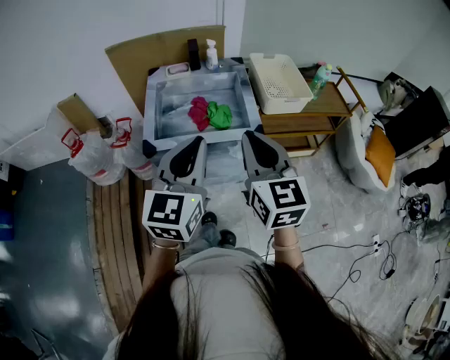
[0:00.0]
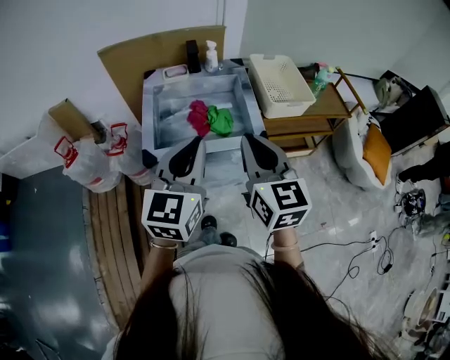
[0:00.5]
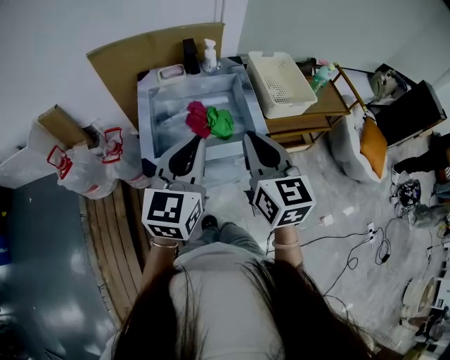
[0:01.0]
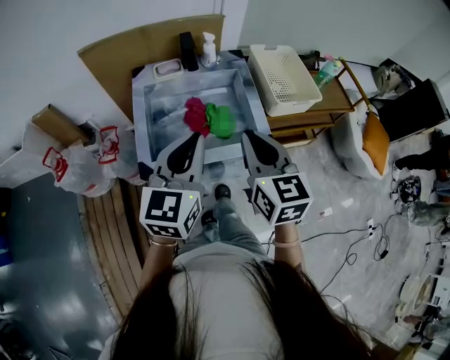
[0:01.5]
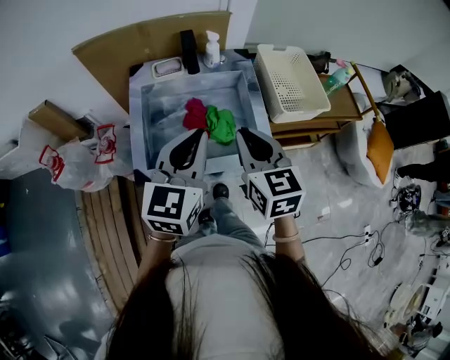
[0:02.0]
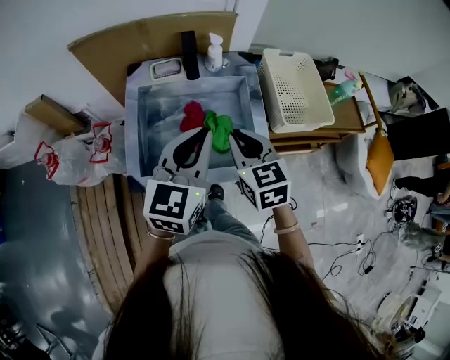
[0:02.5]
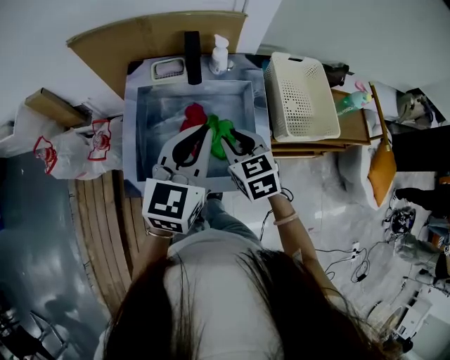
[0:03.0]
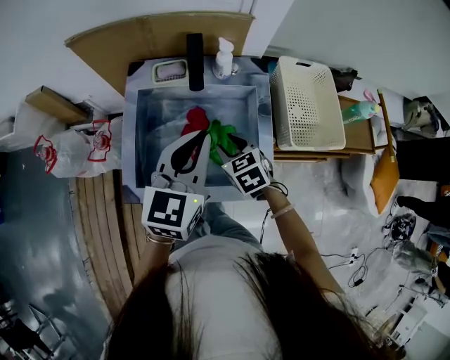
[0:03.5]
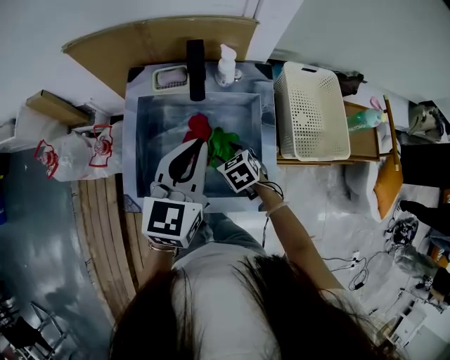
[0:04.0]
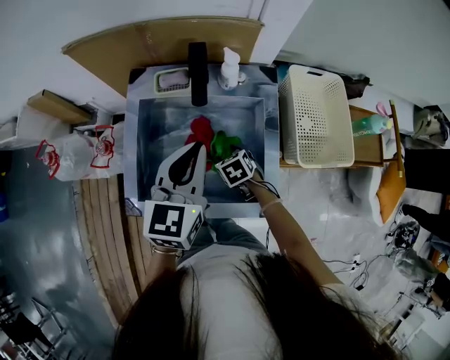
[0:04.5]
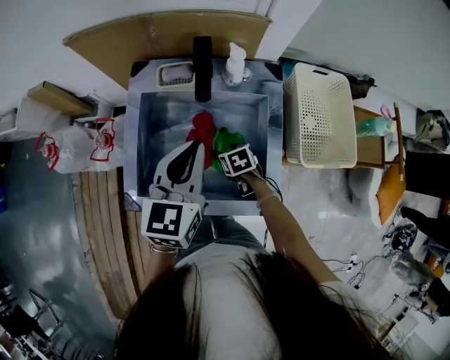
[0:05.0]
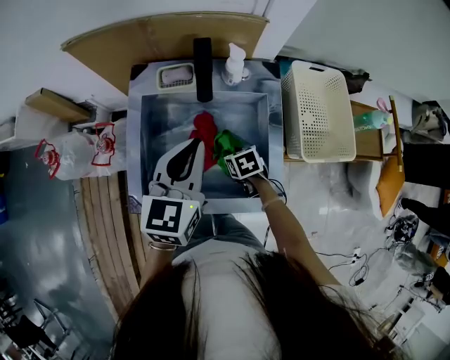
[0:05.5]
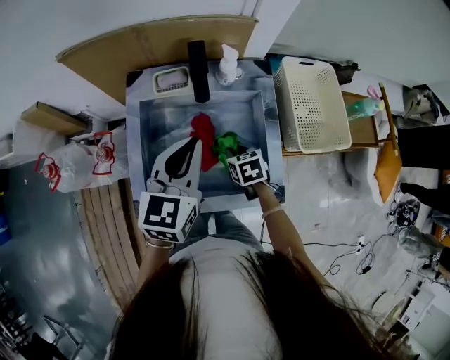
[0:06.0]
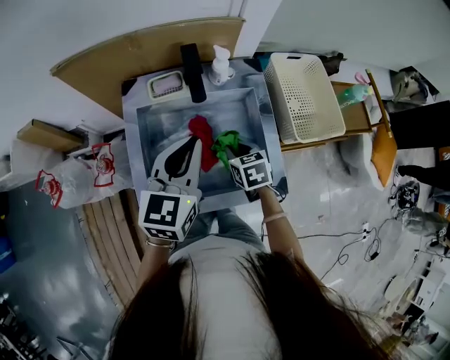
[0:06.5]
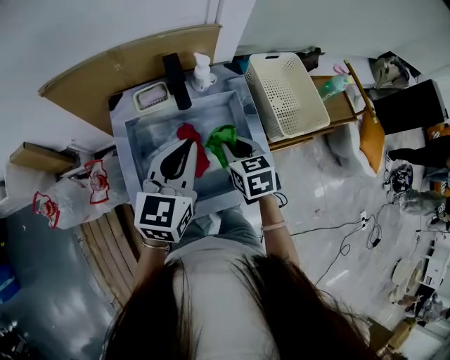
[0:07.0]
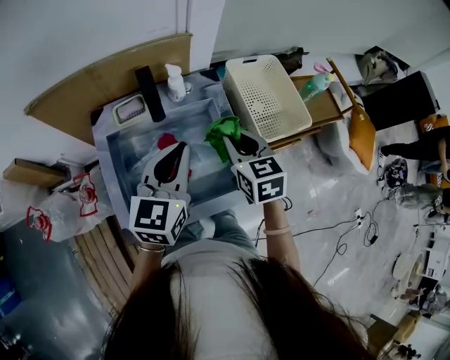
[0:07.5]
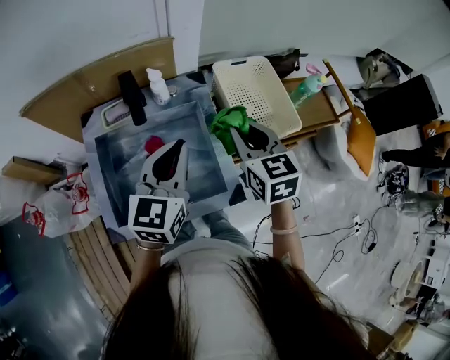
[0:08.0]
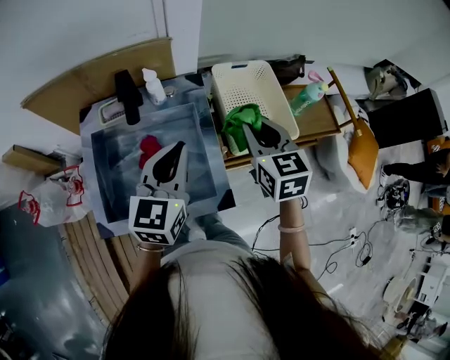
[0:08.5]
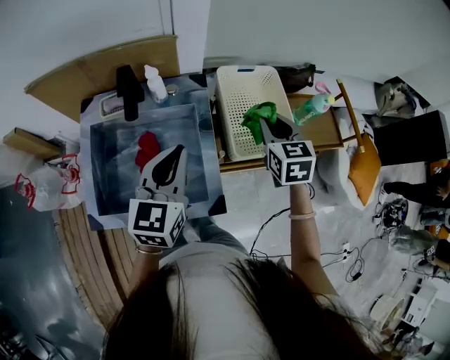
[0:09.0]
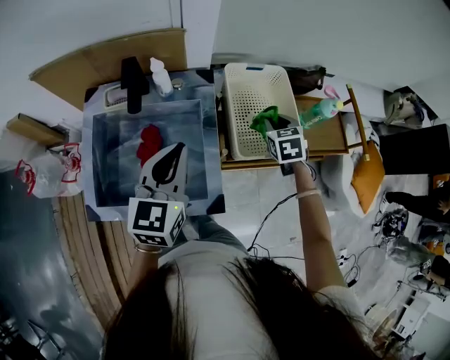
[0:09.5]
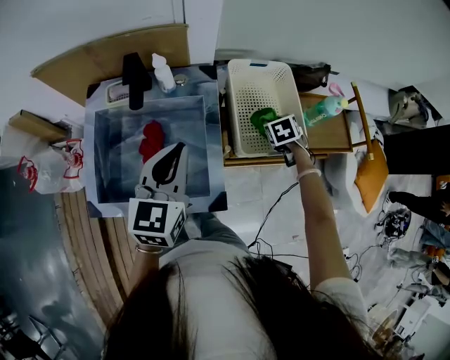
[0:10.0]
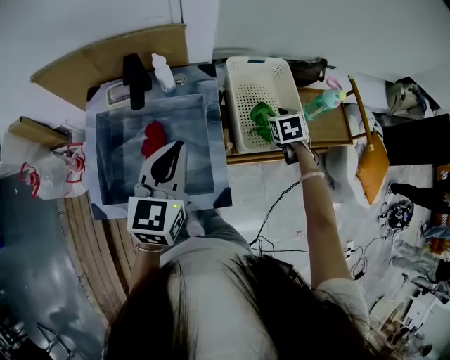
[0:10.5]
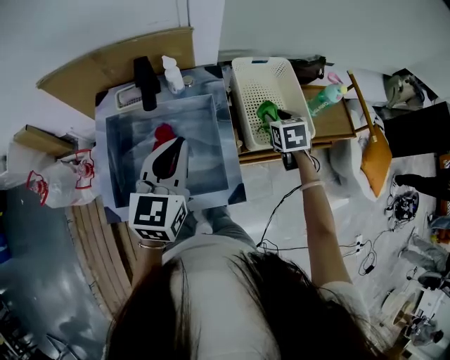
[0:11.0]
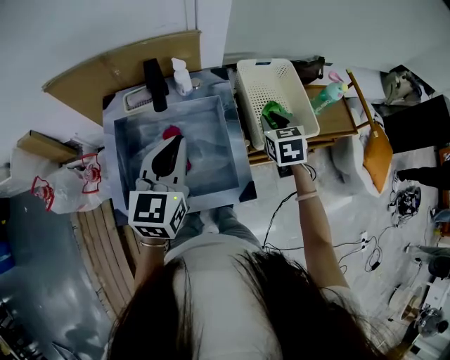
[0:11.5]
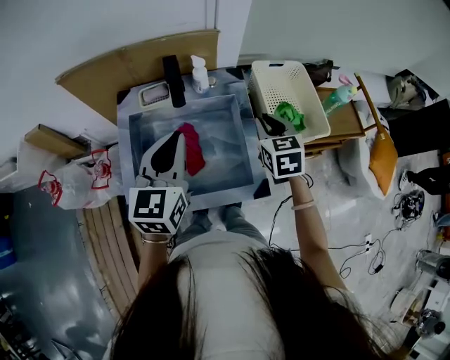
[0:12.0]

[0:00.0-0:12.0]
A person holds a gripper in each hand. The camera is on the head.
0:00.0 to 0:02.0: The left gripper shifts approximately 20 cm forward. The right gripper shifts roughly 25 cm forward and downward.
0:02.0 to 0:04.0: The right gripper moves downward and forward, approximately 30 cm, tips its fingers downward by approximately 40 degrees, and opens its fingers, while the left gripper is displaced forward by about 15 cm.
0:04.0 to 0:06.0: The right gripper travels downward and back again, some 10 cm each way, rotates approximately 20 degrees, and closes.
0:06.0 to 0:08.0: The right gripper moves upward and to the right, roughly 30 cm, and tips its fingers upward by about 30 degrees, while the left gripper moves to the right, about 10 cm.
0:08.0 to 0:10.0: The right gripper shifts roughly 30 cm downward, to the right and forward, and angles its fingers downward, by some 40 degrees.
0:10.0 to 0:12.0: The left gripper heads to the left, covering about 15 cm. The right gripper goes some 30 cm to the left, upward and backward, and turns by roughly 30 degrees.

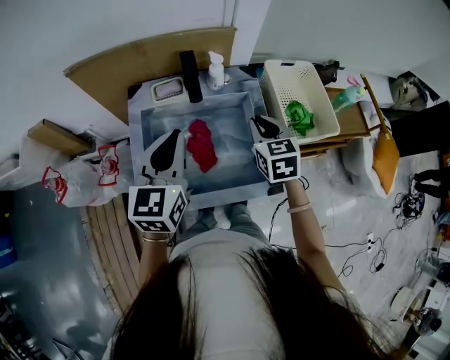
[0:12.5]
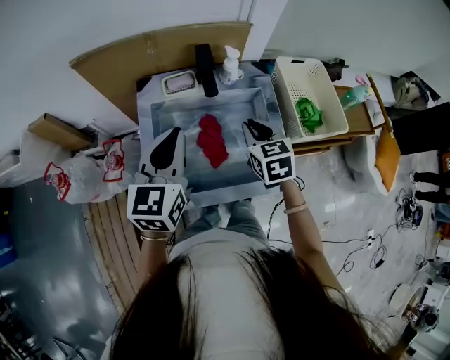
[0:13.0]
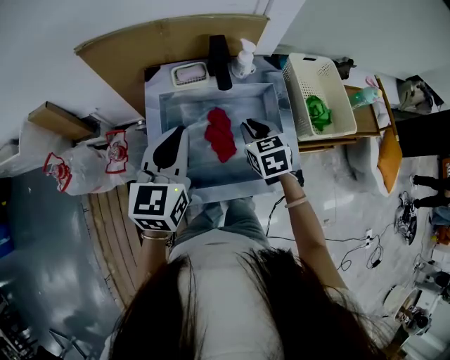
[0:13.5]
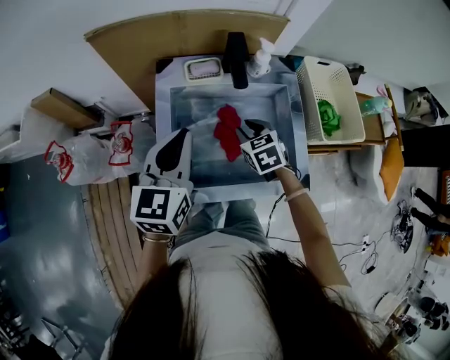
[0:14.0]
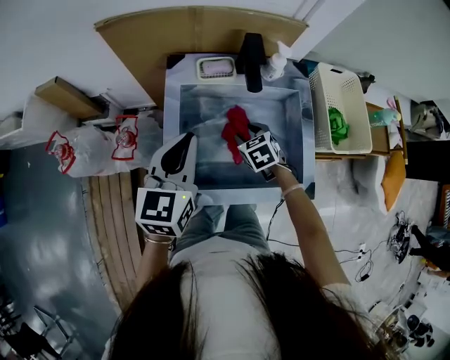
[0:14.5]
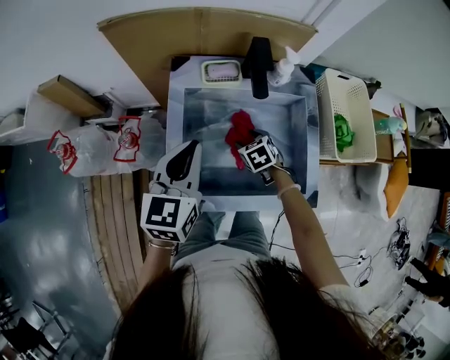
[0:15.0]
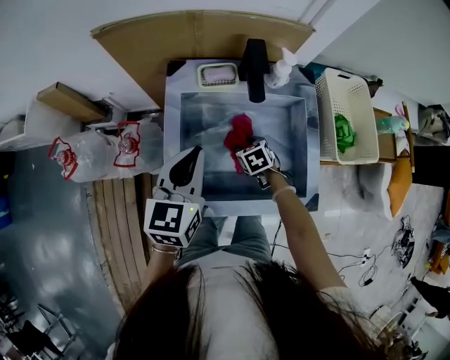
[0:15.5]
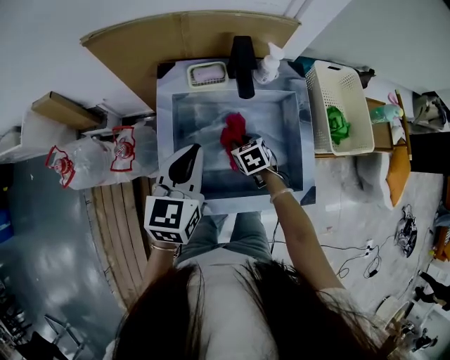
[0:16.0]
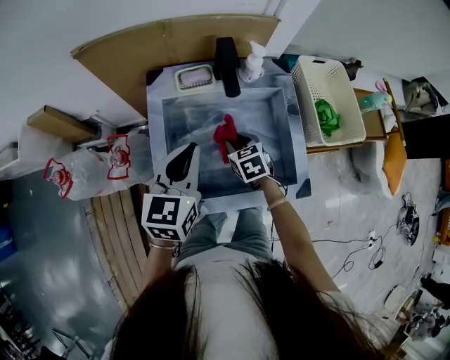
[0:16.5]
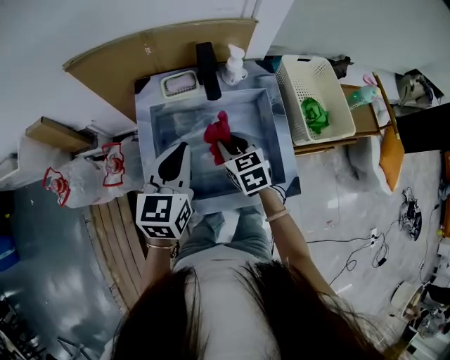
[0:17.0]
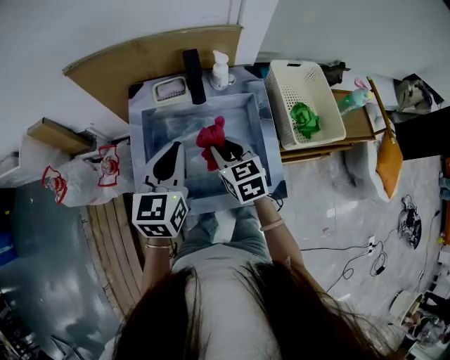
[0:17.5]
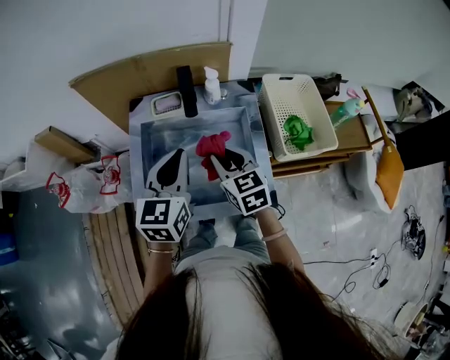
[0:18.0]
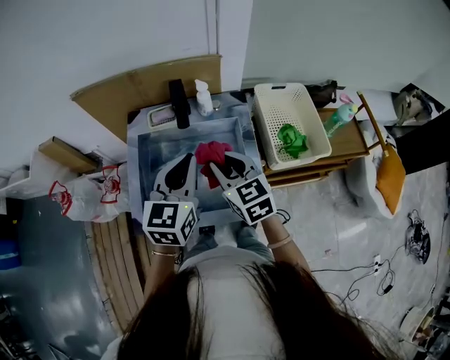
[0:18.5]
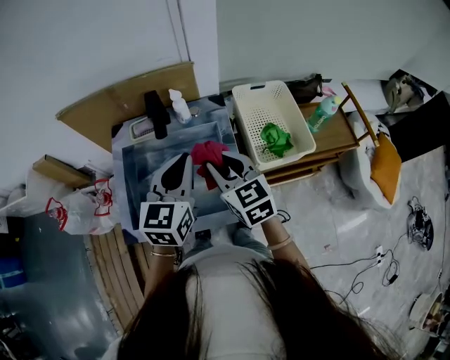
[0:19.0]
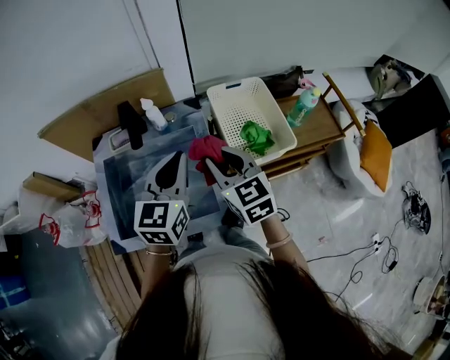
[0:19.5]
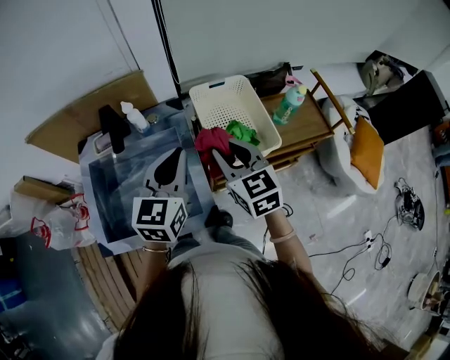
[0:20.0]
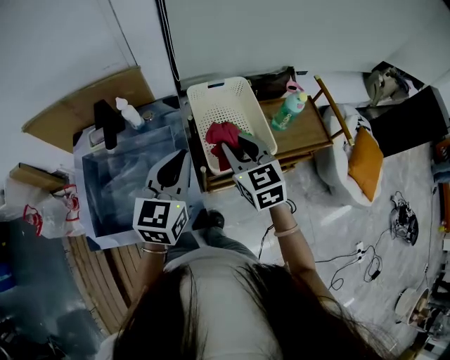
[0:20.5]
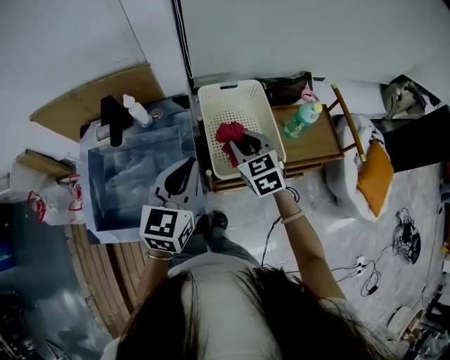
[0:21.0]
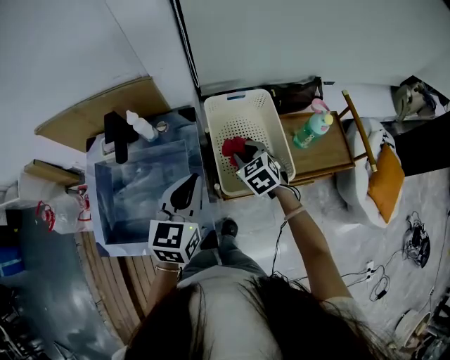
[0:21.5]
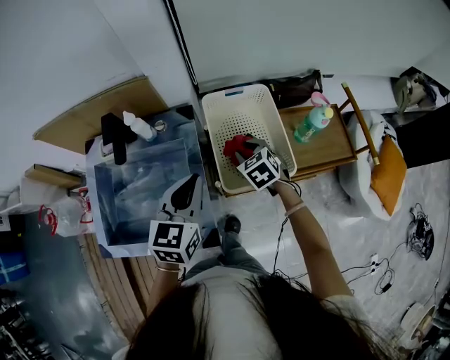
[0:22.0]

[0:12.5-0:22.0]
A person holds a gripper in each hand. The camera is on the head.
0:12.5 to 0:14.5: The right gripper is displaced downward and to the left by roughly 25 cm, swivels approximately 30 degrees, and opens. The left gripper is displaced to the left and downward by roughly 15 cm.
0:14.5 to 0:16.5: The right gripper reaches about 5 cm downward, then returns, and closes.
0:16.5 to 0:18.0: The left gripper heads to the right and upward, covering some 10 cm. The right gripper shifts about 15 cm upward, and swivels about 20 degrees.
0:18.0 to 0:20.0: Both grippers move to the right, about 25 cm.
0:20.0 to 0:22.0: The right gripper goes roughly 20 cm downward and forward, and angles its fingers downward, by approximately 30 degrees. Meanwhile the left gripper goes some 5 cm downward.

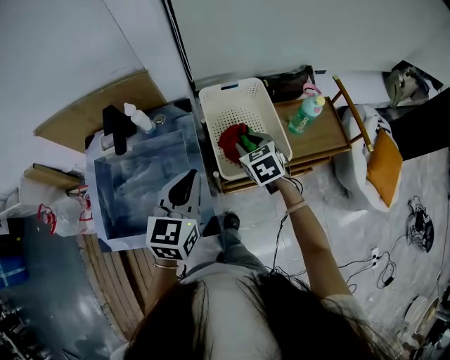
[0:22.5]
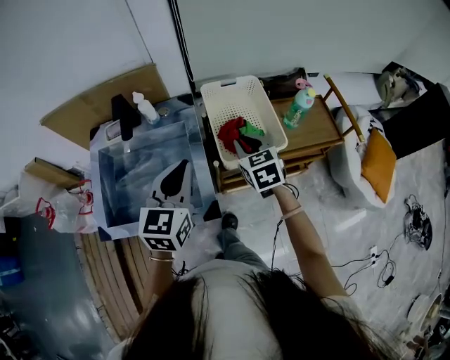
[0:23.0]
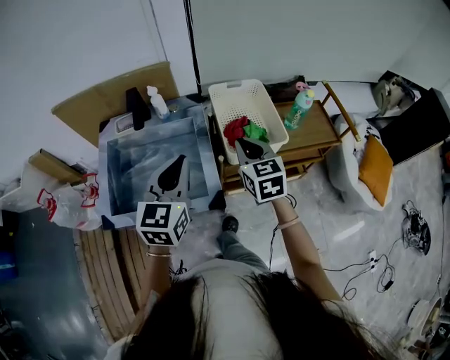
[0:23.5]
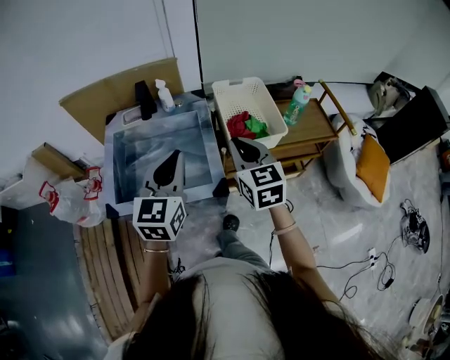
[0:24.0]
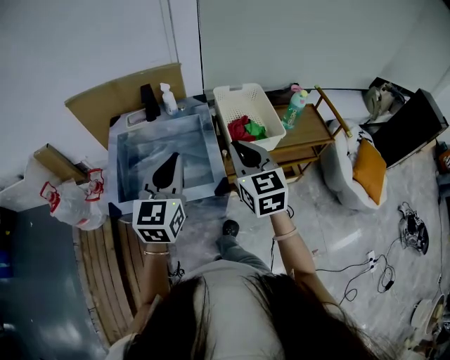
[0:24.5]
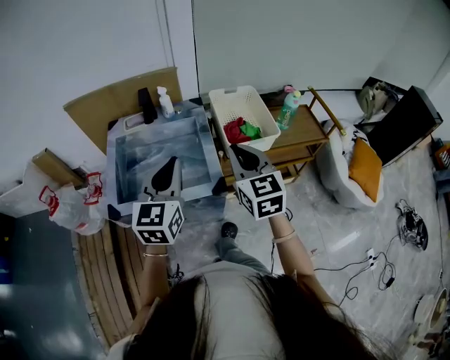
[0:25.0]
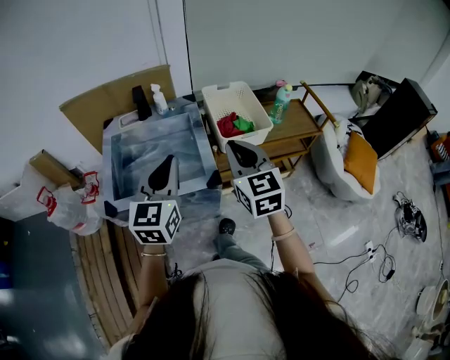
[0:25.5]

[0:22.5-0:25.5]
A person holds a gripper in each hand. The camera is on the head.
0:22.5 to 0:24.0: The left gripper moves backward, to the left and upward, approximately 20 cm. Meanwhile the right gripper heads backward, upward and to the left, covering approximately 25 cm, changes its angle by some 30 degrees, and closes up.
0:24.0 to 0:25.5: Both grippers travel together backward, about 10 cm.

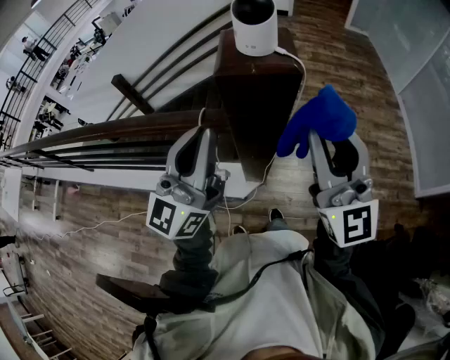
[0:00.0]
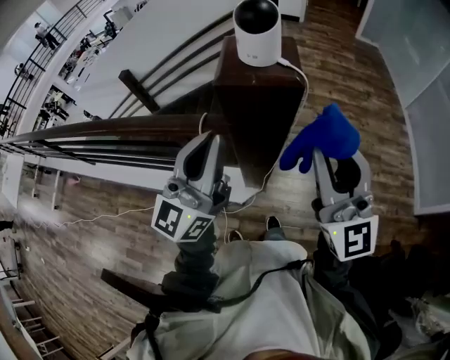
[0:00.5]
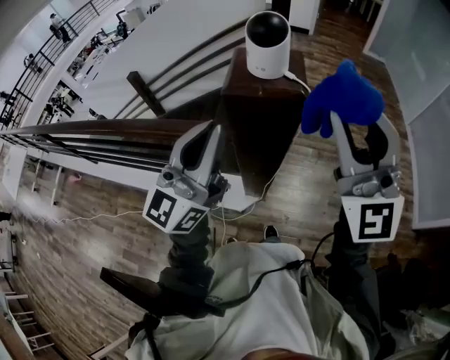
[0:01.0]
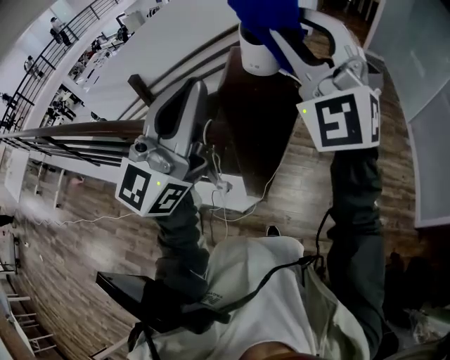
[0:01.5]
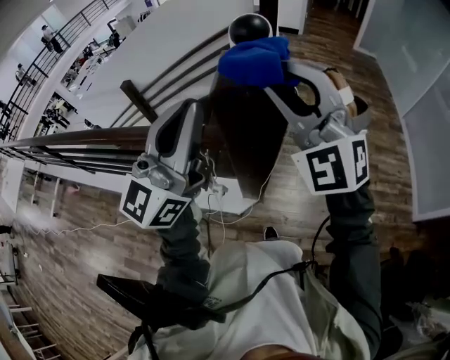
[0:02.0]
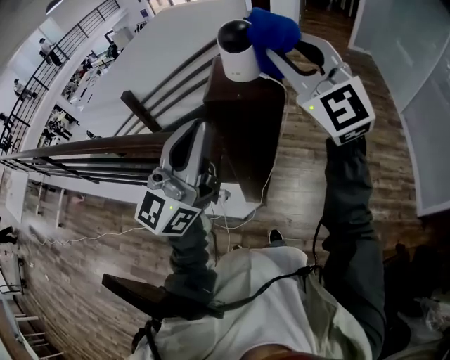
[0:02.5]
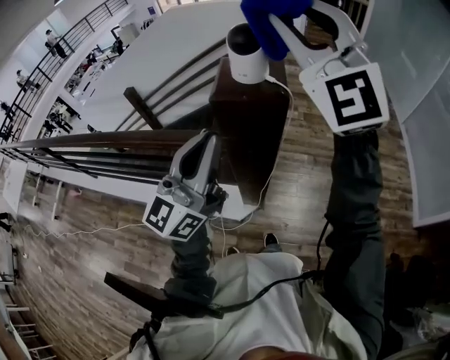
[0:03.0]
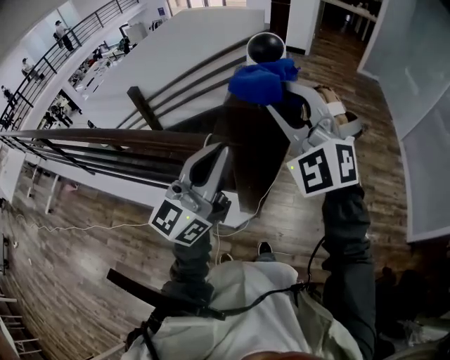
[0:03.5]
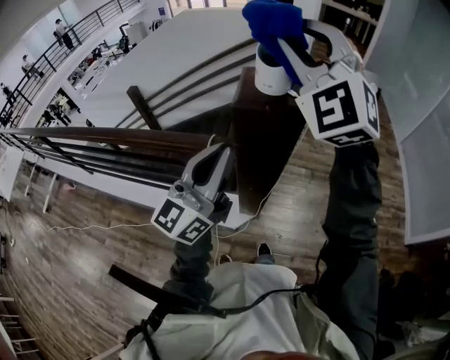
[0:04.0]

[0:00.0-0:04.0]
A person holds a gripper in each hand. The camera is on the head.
0:00.0 to 0:02.0: The right gripper travels forward, to the left and upward by about 15 cm, and rotates around the line of its fingers by about 50 degrees, counterclockwise from behind; the left gripper is displaced upward by approximately 10 cm.
0:02.0 to 0:04.0: The left gripper goes approximately 10 cm downward. The right gripper goes up and down, about 15 cm each way, reversing 2 times.
